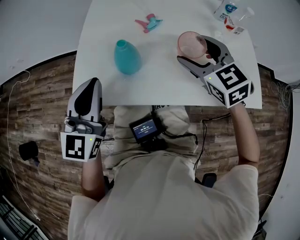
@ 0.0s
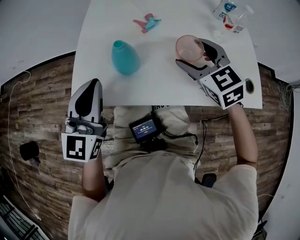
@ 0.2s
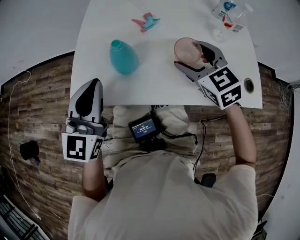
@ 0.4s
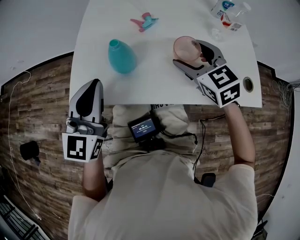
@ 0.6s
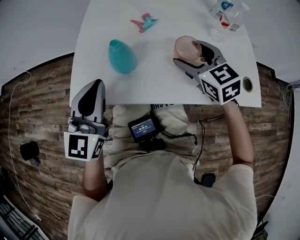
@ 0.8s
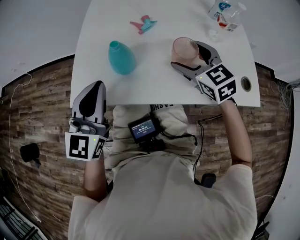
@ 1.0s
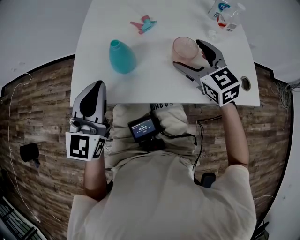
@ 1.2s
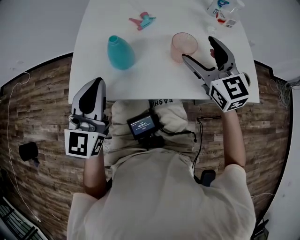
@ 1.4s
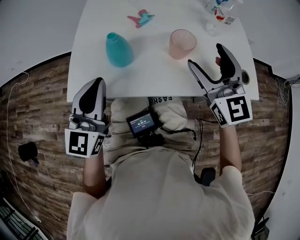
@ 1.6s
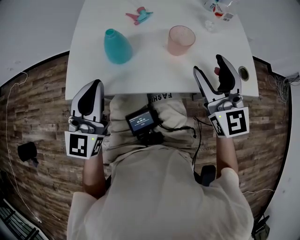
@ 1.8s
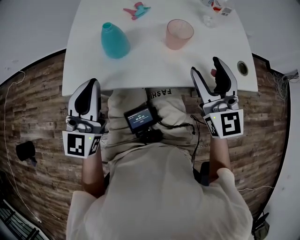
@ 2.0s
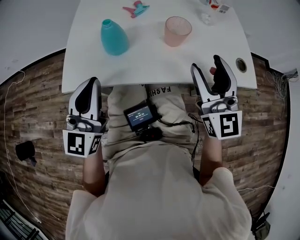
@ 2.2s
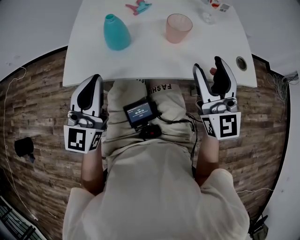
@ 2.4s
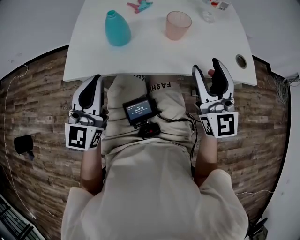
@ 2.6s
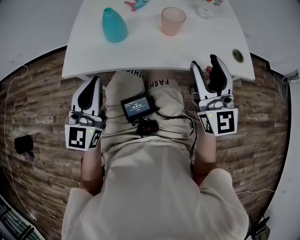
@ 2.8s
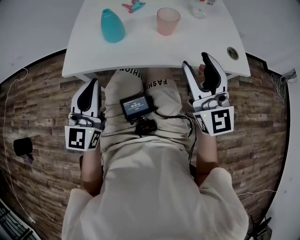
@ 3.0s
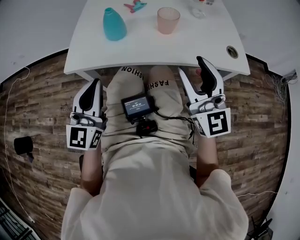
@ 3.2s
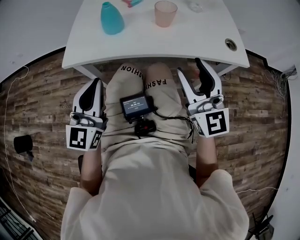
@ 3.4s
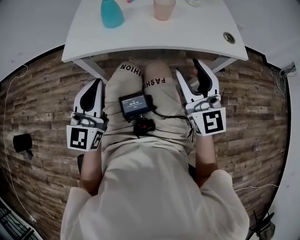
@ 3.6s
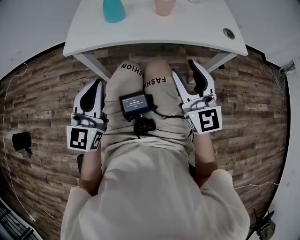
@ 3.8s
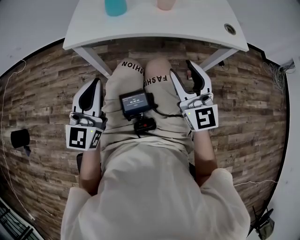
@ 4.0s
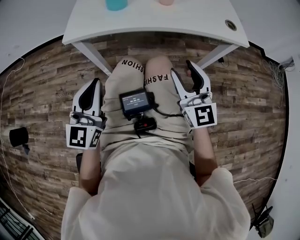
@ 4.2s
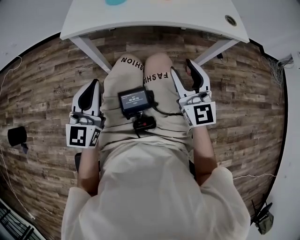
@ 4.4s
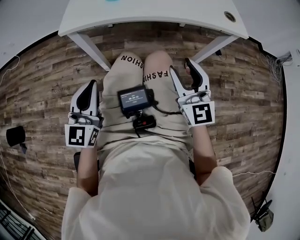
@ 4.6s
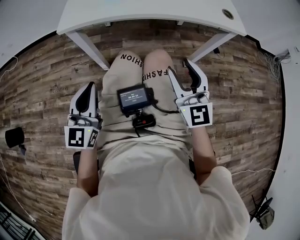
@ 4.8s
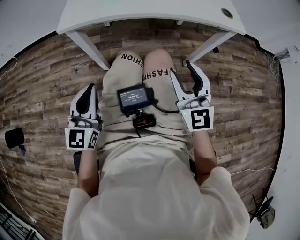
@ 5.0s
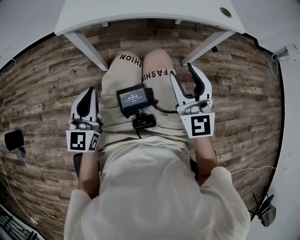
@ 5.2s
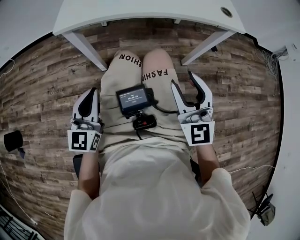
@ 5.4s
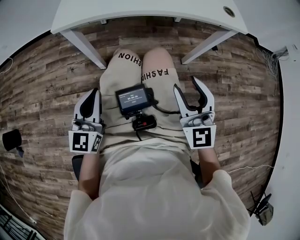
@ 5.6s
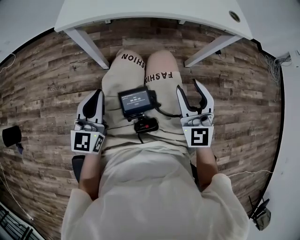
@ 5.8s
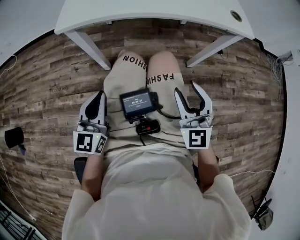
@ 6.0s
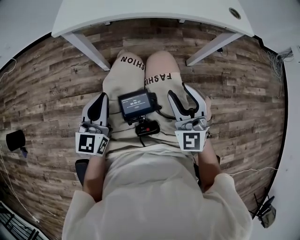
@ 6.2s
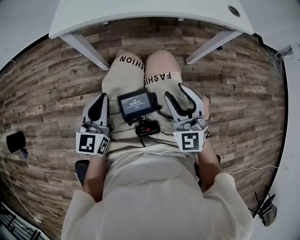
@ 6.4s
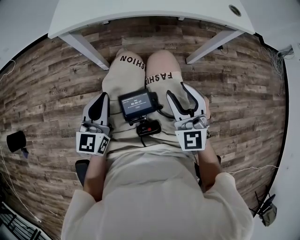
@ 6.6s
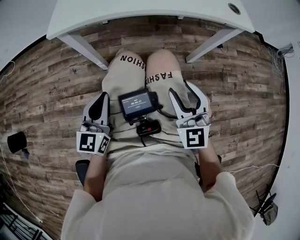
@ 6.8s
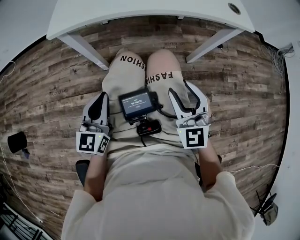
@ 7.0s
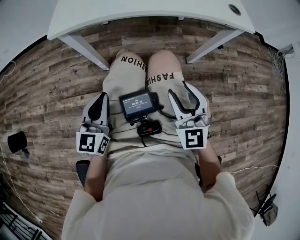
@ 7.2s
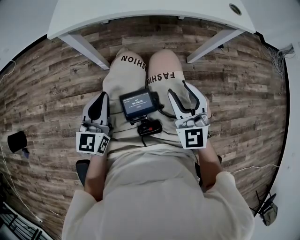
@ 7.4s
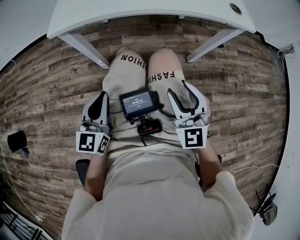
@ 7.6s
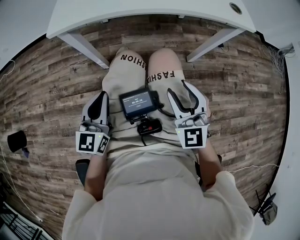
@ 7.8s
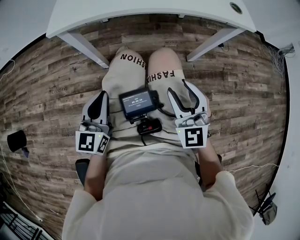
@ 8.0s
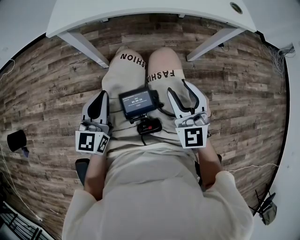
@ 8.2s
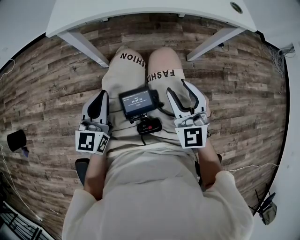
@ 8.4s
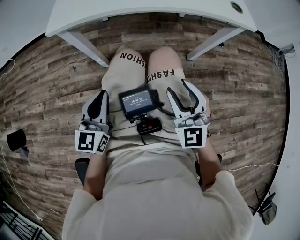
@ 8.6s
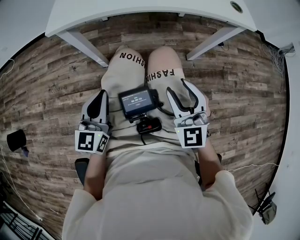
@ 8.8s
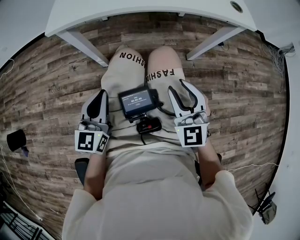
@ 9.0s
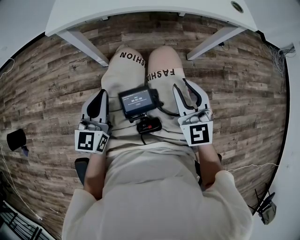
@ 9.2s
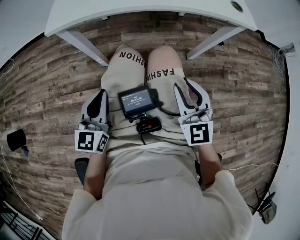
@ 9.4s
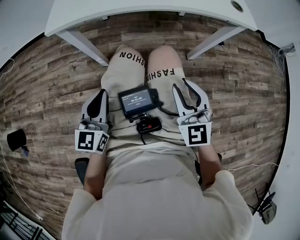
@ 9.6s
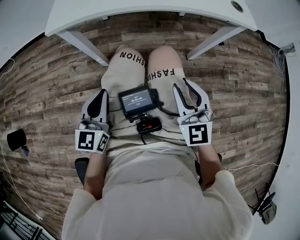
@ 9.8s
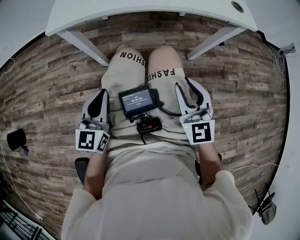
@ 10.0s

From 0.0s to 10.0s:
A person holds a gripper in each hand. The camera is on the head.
From 0.0s to 1.4s: The right gripper ends up approximately 5 cm from where it was.
From 1.4s to 2.8s: The left gripper travels backward by approximately 10 cm; the right gripper shifts about 15 cm backward, rotates about 30 degrees, and closes its fingers.
From 2.8s to 4.2s: The right gripper moves backward and downward, about 20 cm. Meanwhile the left gripper goes about 15 cm backward.
From 4.2s to 5.8s: The right gripper heads backward, covering some 10 cm. Meanwhile the left gripper travels downward by roughly 10 cm.
From 5.8s to 7.2s: There are only small adjustments of the grippers.
From 7.2s to 8.6s: The two grippers keep their place.
From 8.6s to 10.0s: There are only small adjustments of the grippers.

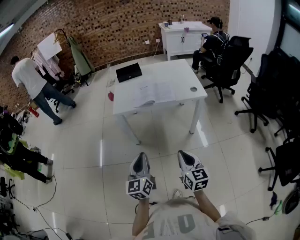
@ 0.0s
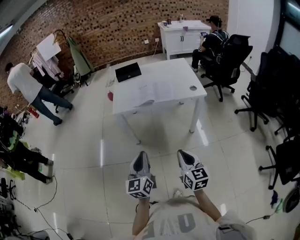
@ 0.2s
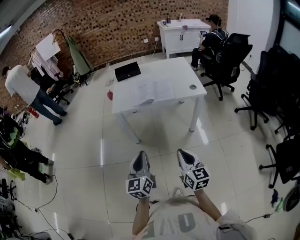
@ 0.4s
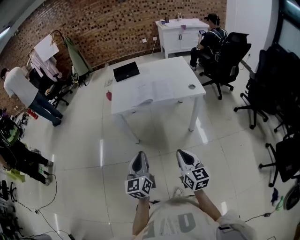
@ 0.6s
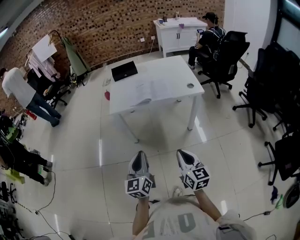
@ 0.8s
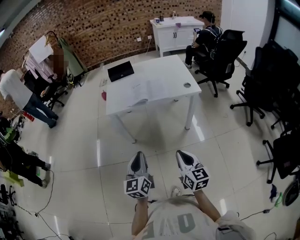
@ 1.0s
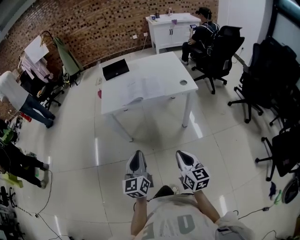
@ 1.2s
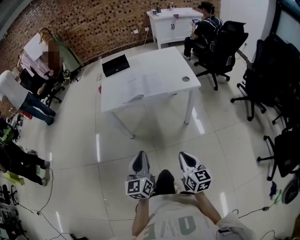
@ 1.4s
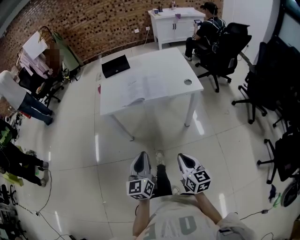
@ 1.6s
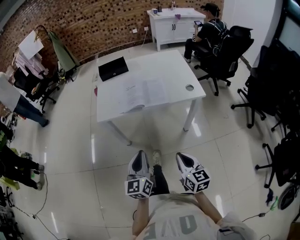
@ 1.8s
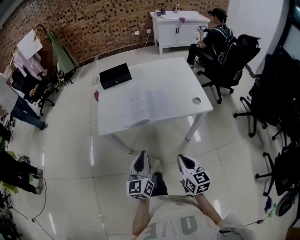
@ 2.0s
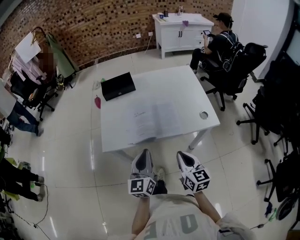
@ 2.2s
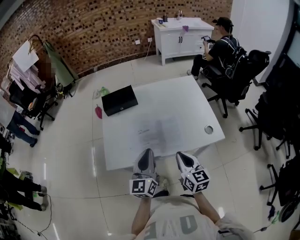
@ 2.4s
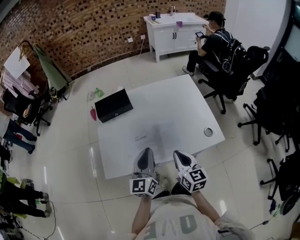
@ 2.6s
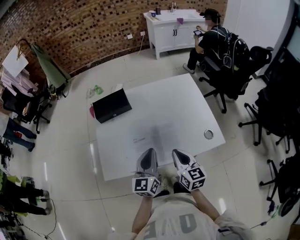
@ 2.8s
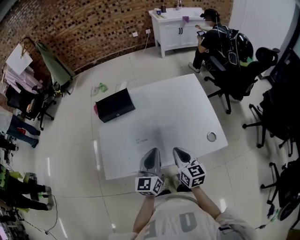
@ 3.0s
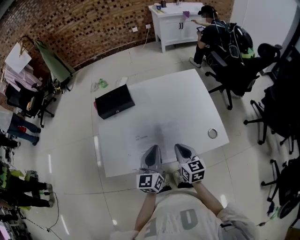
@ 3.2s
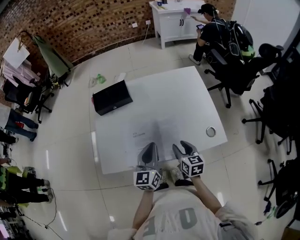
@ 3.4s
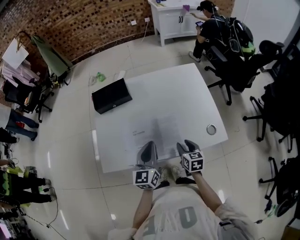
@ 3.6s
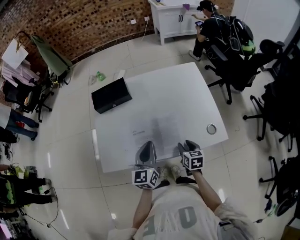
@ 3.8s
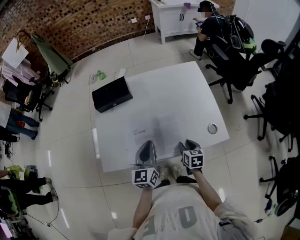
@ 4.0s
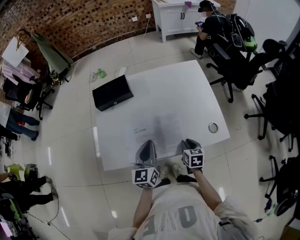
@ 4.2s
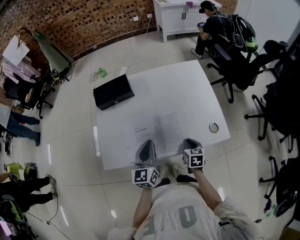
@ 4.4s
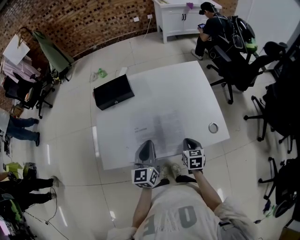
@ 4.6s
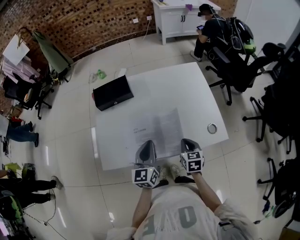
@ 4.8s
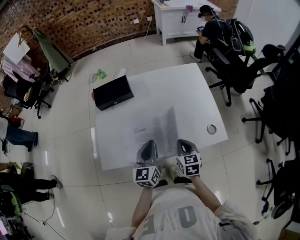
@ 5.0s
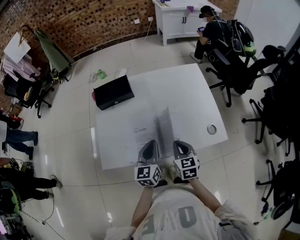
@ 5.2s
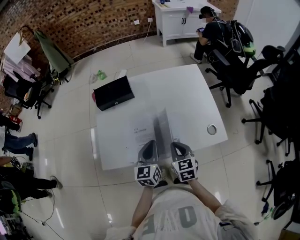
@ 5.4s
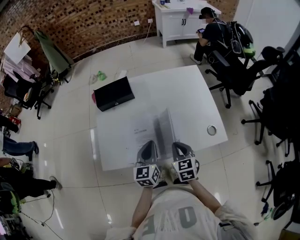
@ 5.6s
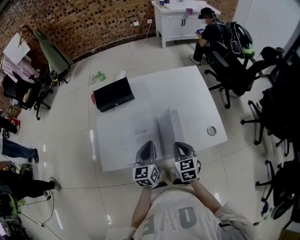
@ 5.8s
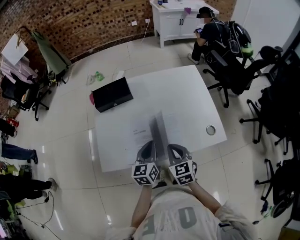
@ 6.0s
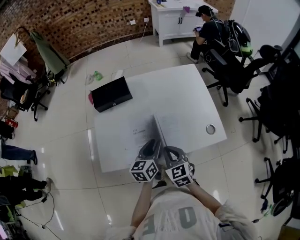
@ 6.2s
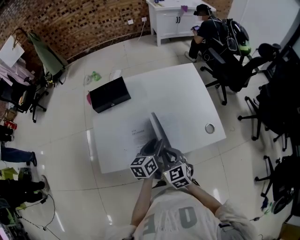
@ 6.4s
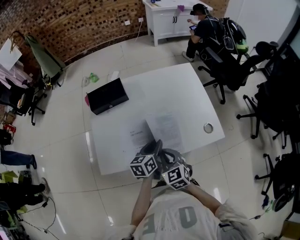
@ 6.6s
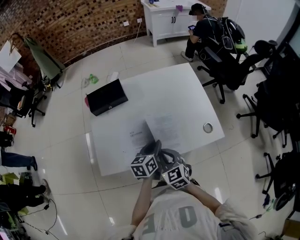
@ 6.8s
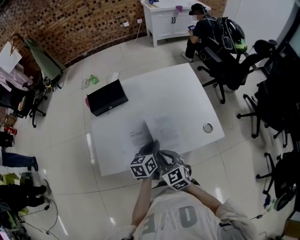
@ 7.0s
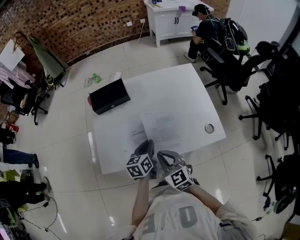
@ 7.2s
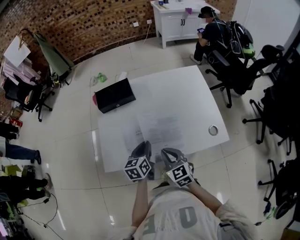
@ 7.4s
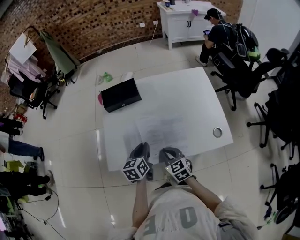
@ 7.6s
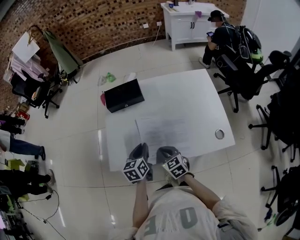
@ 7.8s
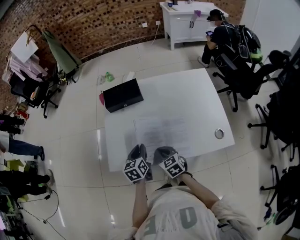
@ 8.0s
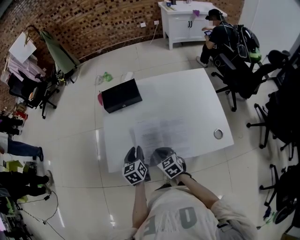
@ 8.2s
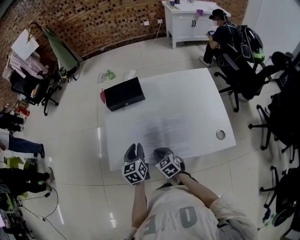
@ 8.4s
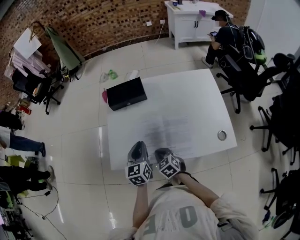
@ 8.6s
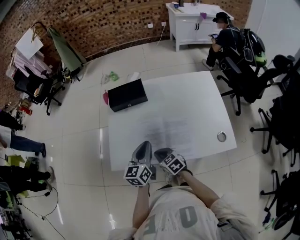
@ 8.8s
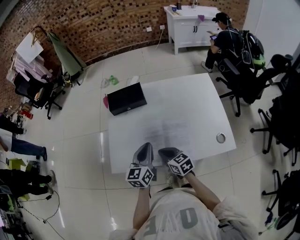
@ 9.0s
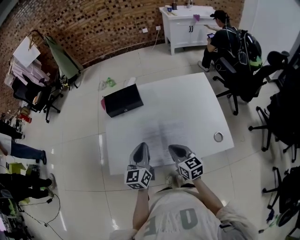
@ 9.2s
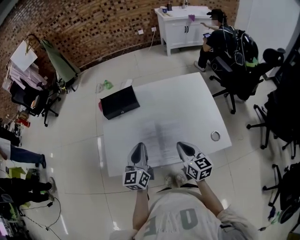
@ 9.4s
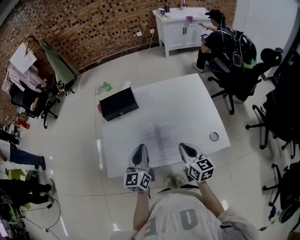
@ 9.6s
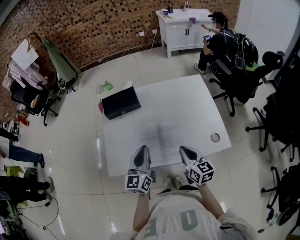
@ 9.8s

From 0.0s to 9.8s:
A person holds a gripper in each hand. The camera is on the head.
From 0.0s to 1.4s: The right gripper shifts by approximately 5 cm; the left gripper heads to the right, covering approximately 5 cm.
From 1.4s to 2.8s: The two grippers travel together, forward, about 50 cm.
From 2.8s to 4.2s: The right gripper goes some 20 cm downward and to the right, rotates about 30 degrees, and opens its fingers.
From 4.2s to 5.6s: The right gripper travels upward and to the left by roughly 10 cm, swivels approximately 20 degrees, and closes its fingers.
From 5.6s to 7.0s: The right gripper travels to the left by approximately 5 cm. Meanwhile the left gripper ends up roughly 5 cm from where it was, changes its angle by roughly 20 degrees, and opens, then closes once more.
From 7.0s to 8.4s: The left gripper goes some 15 cm to the left, and rotates approximately 30 degrees. Meanwhile the right gripper goes approximately 10 cm downward and to the left.
From 8.4s to 9.8s: The left gripper travels upward and to the right by roughly 15 cm, turns by about 30 degrees, and closes; the right gripper shifts some 20 cm to the right and upward, and changes its angle by approximately 40 degrees.

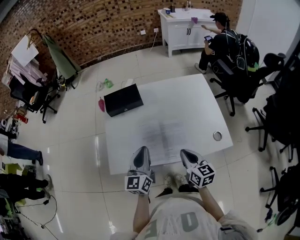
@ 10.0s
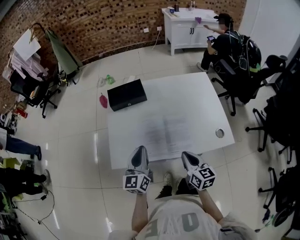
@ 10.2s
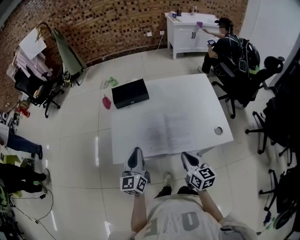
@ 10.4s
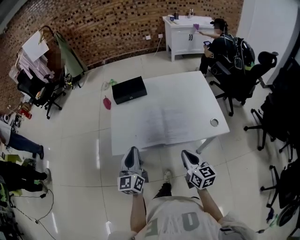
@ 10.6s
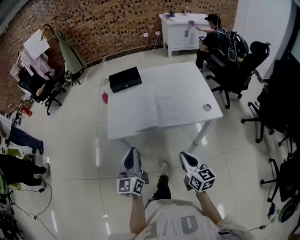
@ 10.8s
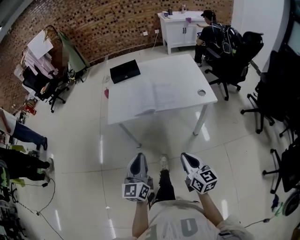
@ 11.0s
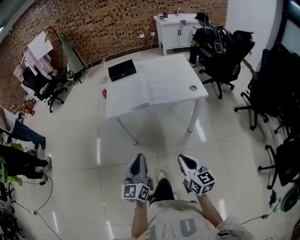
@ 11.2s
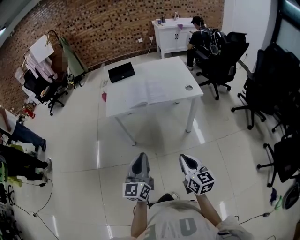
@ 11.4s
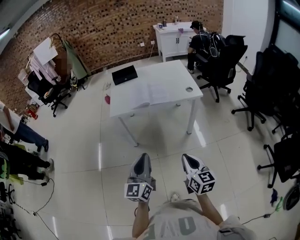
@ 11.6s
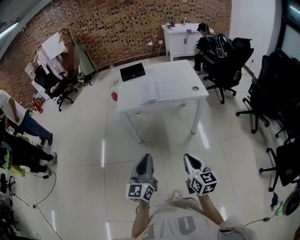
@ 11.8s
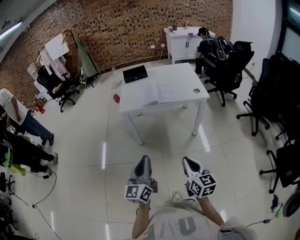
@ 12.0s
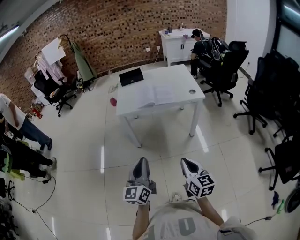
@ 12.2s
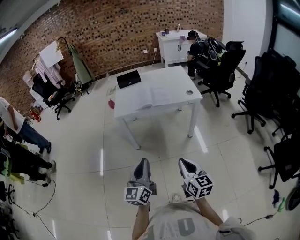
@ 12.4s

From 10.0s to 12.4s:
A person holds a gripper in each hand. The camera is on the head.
From 10.0s to 11.2s: Both grippers are carried backward, about 50 cm.
From 11.2s to 12.4s: Both grippers travel together backward, about 15 cm.

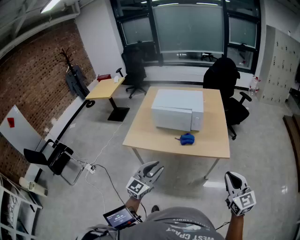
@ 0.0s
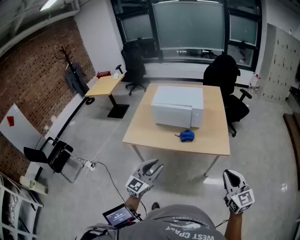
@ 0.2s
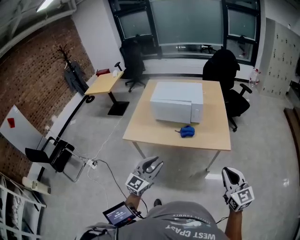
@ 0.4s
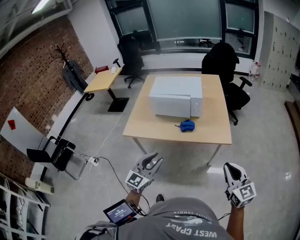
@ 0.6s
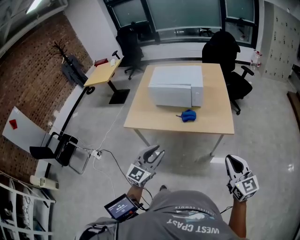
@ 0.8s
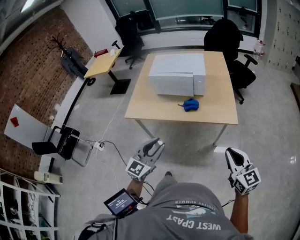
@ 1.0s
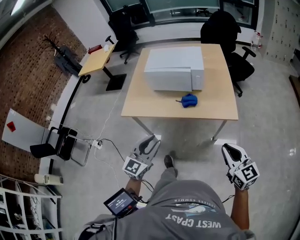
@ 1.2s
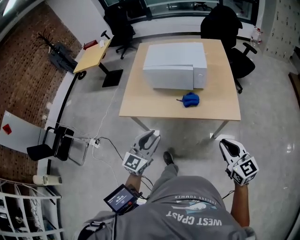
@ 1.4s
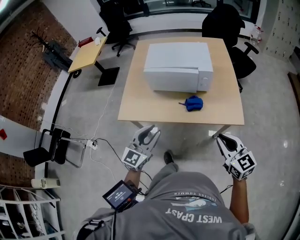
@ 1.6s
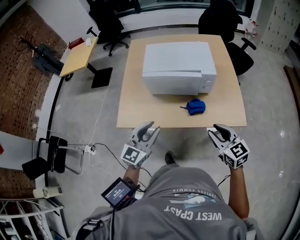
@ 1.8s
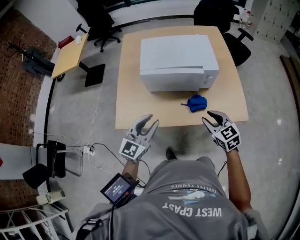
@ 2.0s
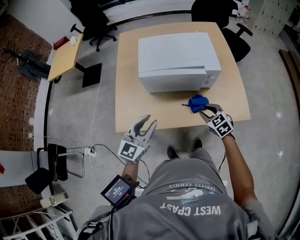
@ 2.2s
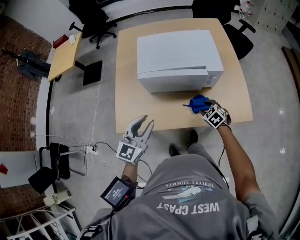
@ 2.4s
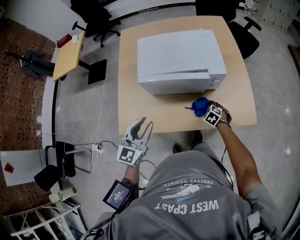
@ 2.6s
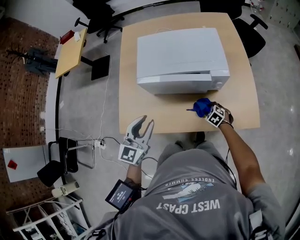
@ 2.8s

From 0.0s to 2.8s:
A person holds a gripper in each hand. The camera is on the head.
From 0.0s to 1.4s: The left gripper travels forward by approximately 10 cm. Meanwhile the right gripper shifts approximately 15 cm forward, downward and to the left.
From 1.4s to 2.8s: The right gripper heads forward and downward, covering some 60 cm, tilts its fingers approximately 50 degrees downward, and opens up. The left gripper heads forward, covering some 35 cm.
